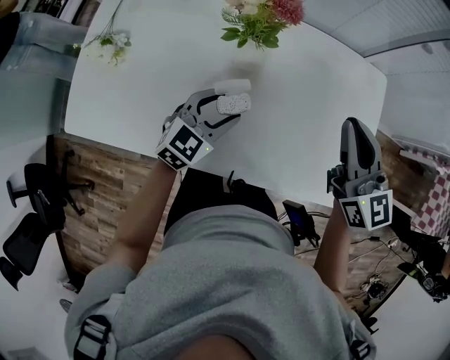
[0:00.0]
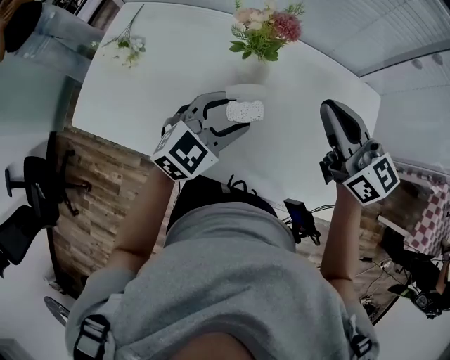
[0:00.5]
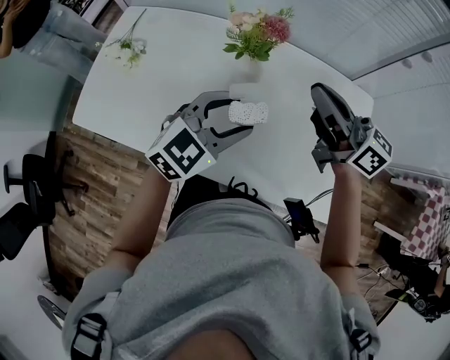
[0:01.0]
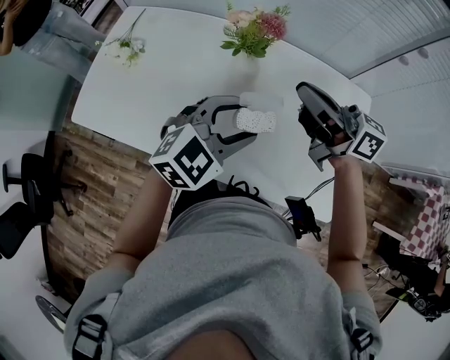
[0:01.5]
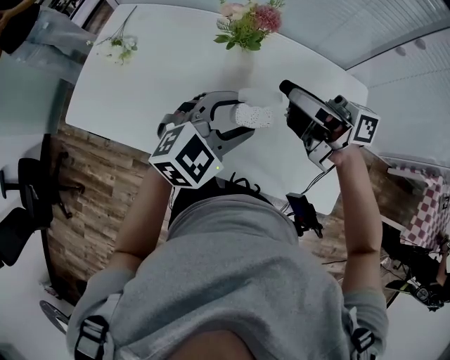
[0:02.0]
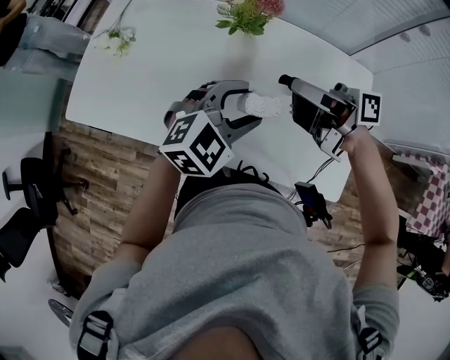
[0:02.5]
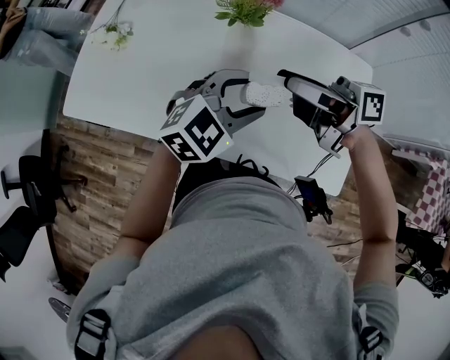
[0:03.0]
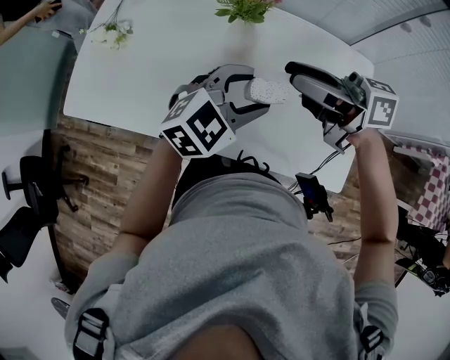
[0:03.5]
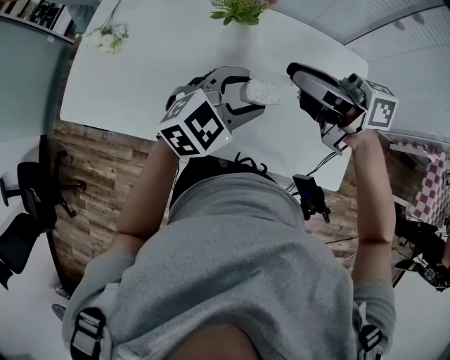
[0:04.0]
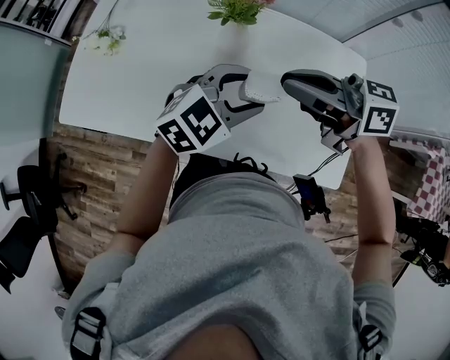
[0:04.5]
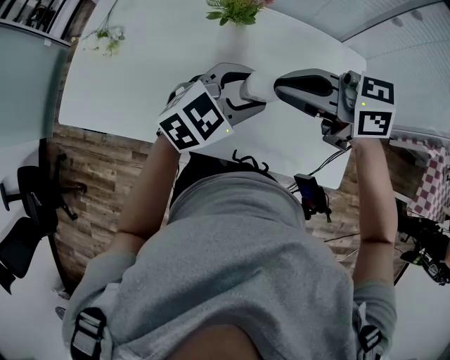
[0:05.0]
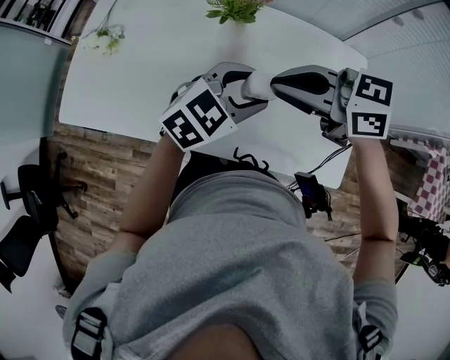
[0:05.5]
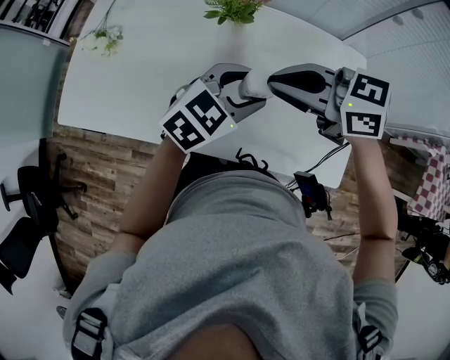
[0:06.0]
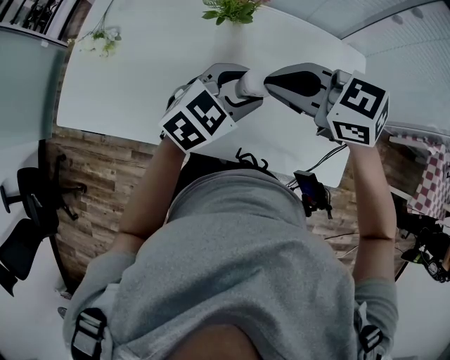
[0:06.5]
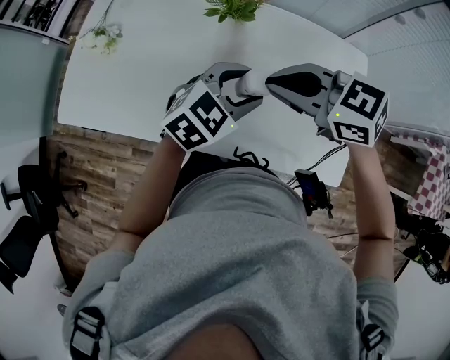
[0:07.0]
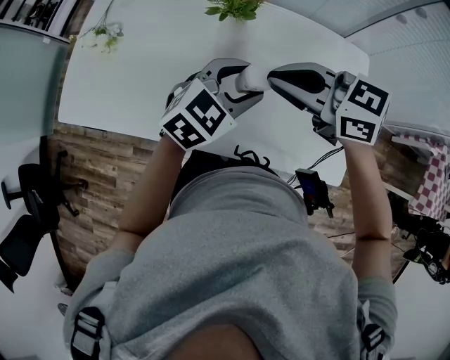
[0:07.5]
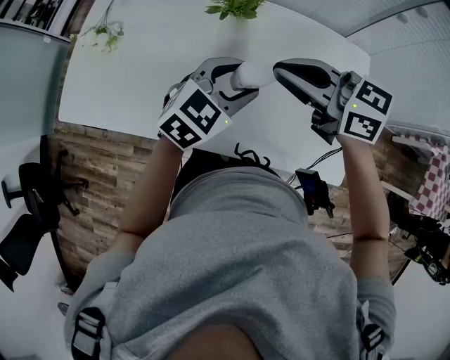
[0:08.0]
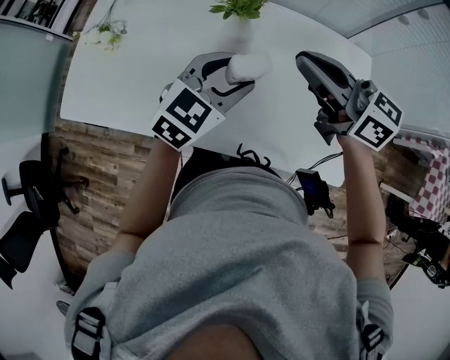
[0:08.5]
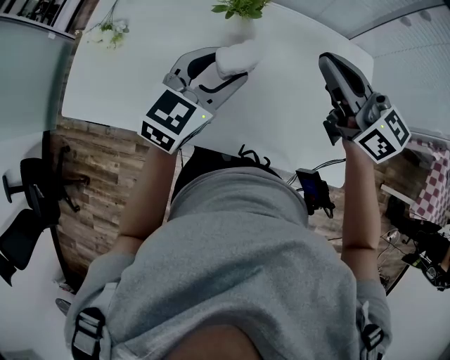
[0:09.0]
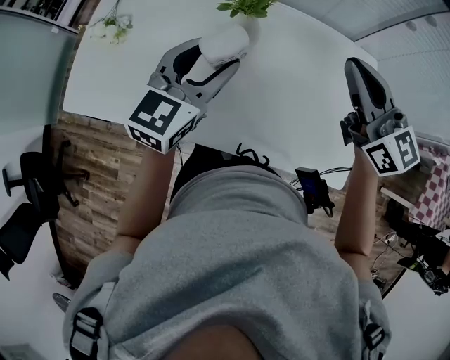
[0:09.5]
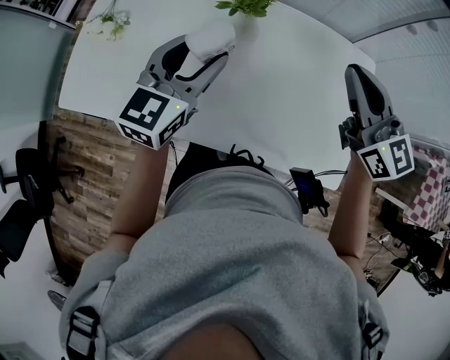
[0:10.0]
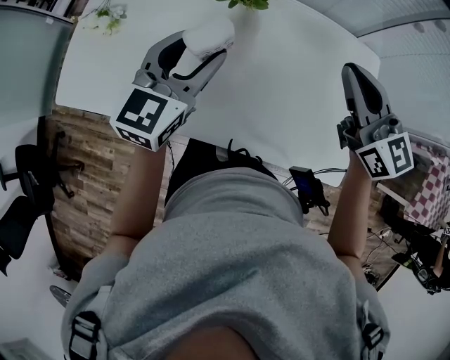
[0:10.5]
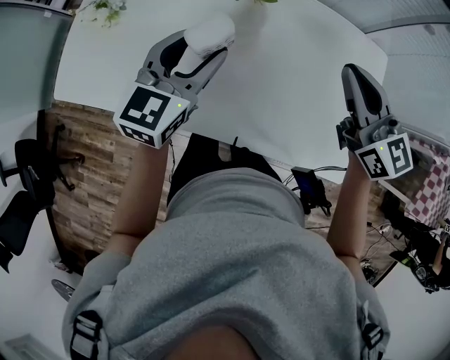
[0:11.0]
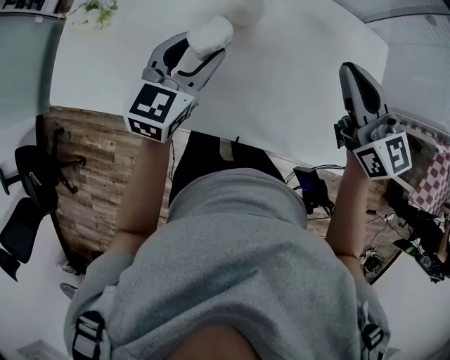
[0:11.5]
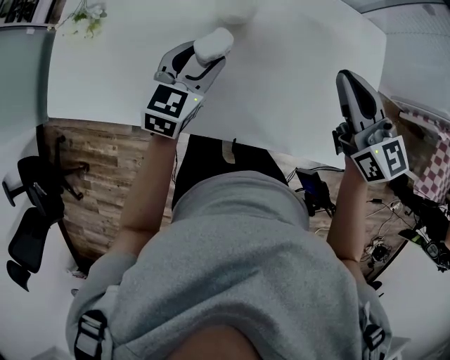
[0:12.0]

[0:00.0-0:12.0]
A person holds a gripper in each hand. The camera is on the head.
0:00.0 to 0:02.0: The right gripper moves to the left, roughly 10 cm, swivels some 80 degrees, and opens up. Meanwhile the left gripper travels upward and to the right by some 15 cm.
0:02.0 to 0:04.0: The grippers stay close to where they were, moving slightly.
0:04.0 to 0:06.0: The right gripper turns by roughly 40 degrees.
0:06.0 to 0:08.0: The grippers make only small movements.
0:08.0 to 0:10.0: The left gripper moves to the left and upward, about 10 cm, and rotates approximately 30 degrees; the right gripper goes some 10 cm to the right, and rotates about 40 degrees.
0:10.0 to 0:12.0: The right gripper heads downward, covering roughly 10 cm, while the left gripper goes roughly 15 cm downward.

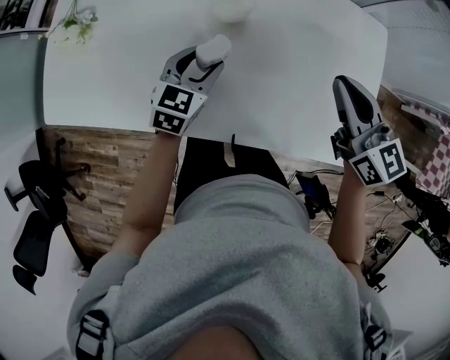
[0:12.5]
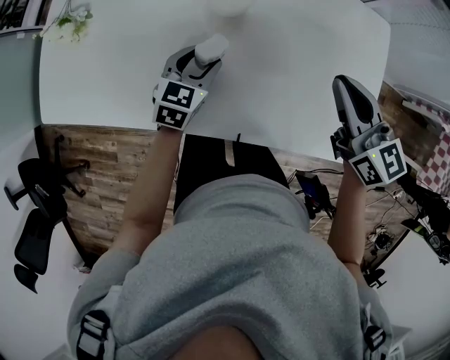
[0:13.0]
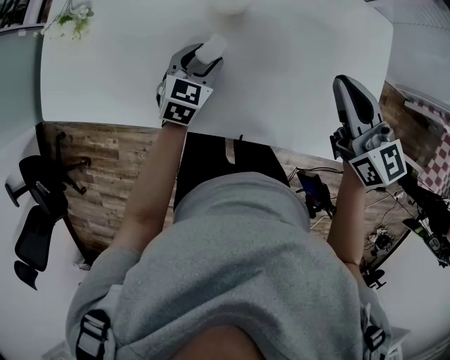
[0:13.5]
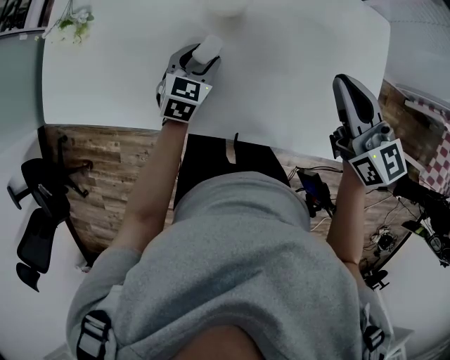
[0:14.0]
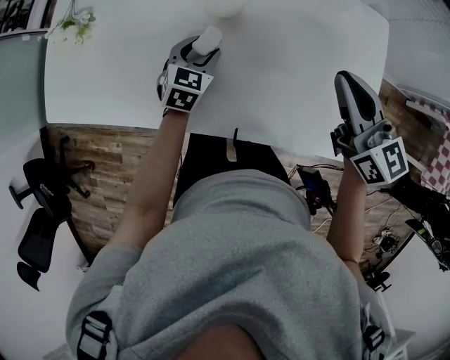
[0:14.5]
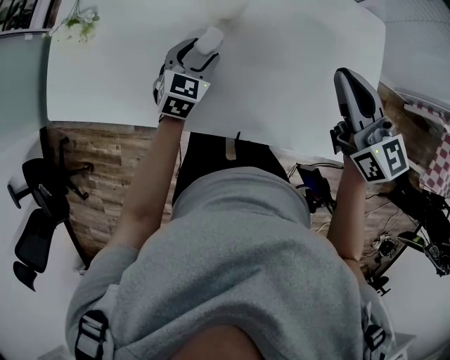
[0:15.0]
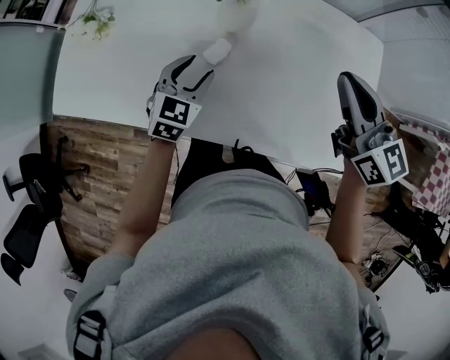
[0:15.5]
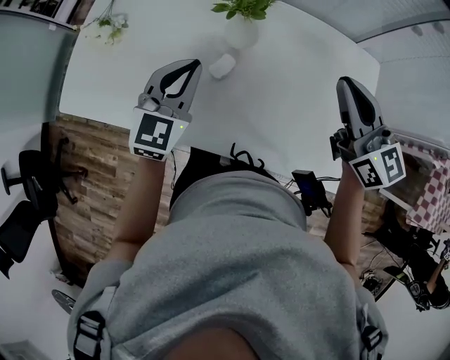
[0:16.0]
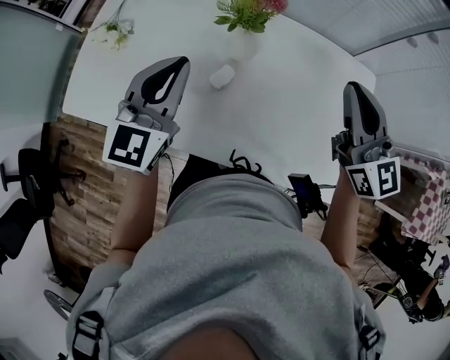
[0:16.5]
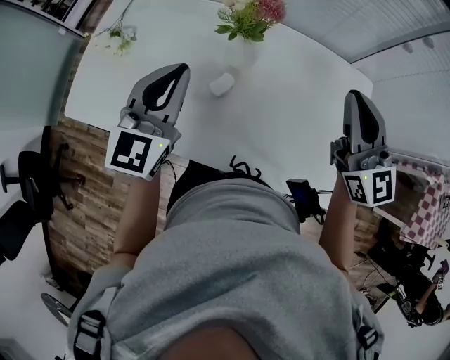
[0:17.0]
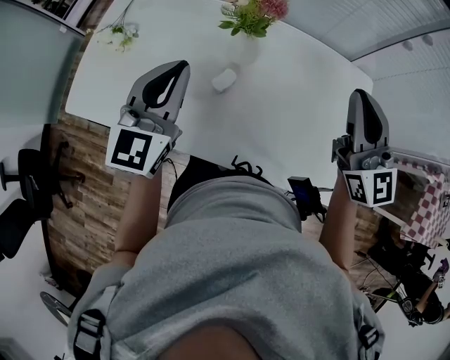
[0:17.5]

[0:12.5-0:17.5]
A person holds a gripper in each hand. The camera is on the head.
0:15.0 to 0:17.5: The left gripper moves upward, roughly 30 cm, tilts its fingers some 30 degrees upward, and closes up; the right gripper goes some 15 cm upward, and swivels about 30 degrees.

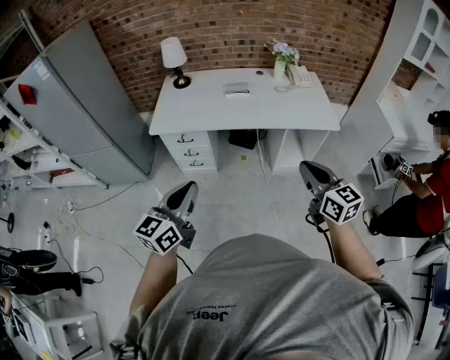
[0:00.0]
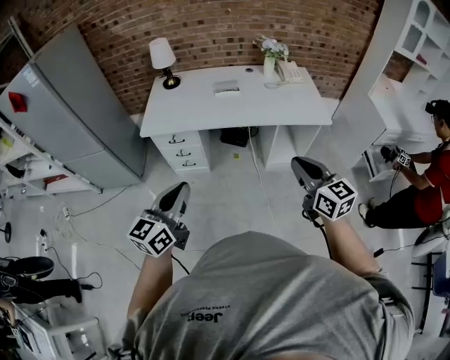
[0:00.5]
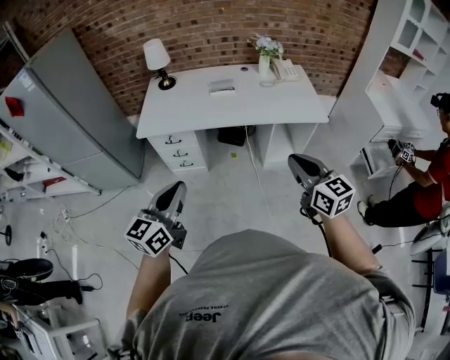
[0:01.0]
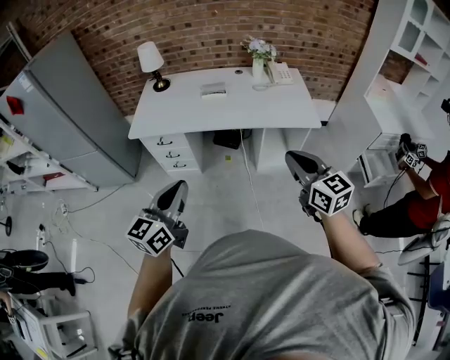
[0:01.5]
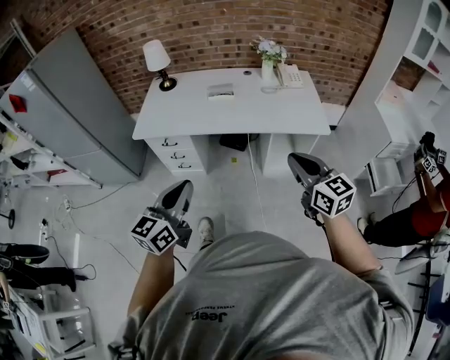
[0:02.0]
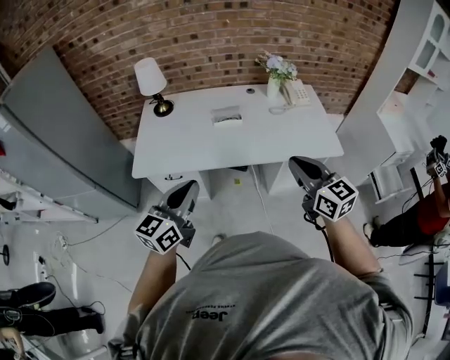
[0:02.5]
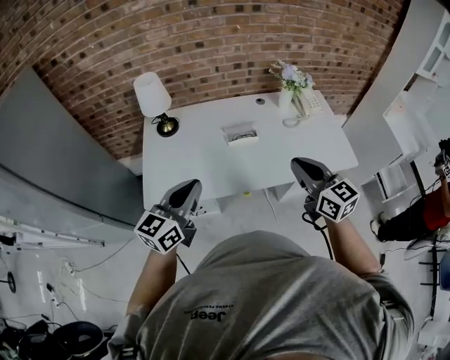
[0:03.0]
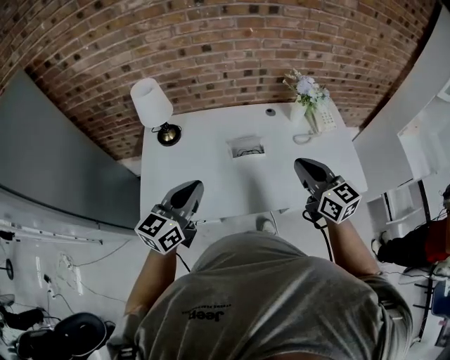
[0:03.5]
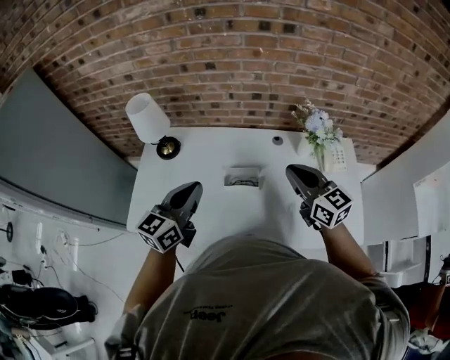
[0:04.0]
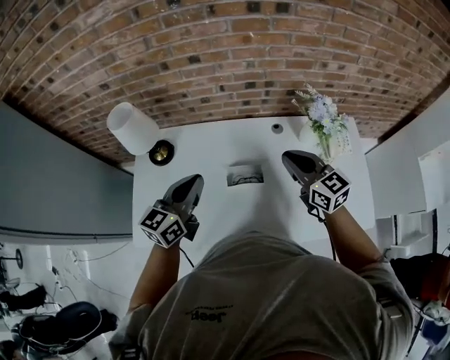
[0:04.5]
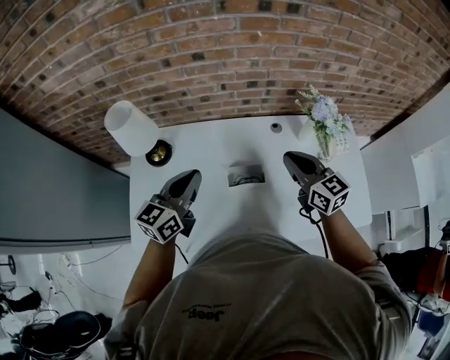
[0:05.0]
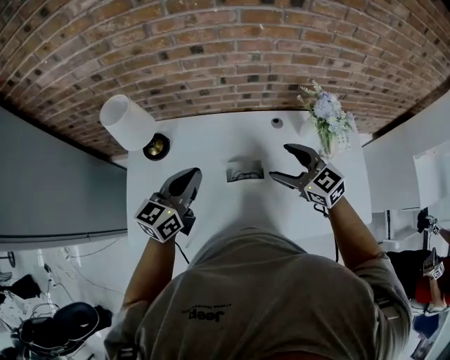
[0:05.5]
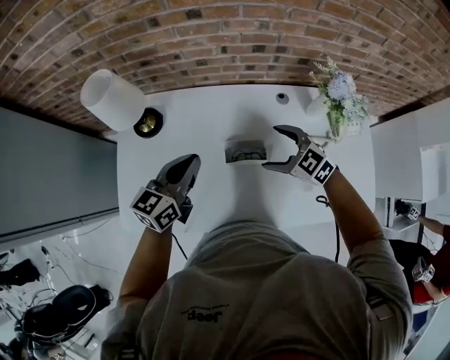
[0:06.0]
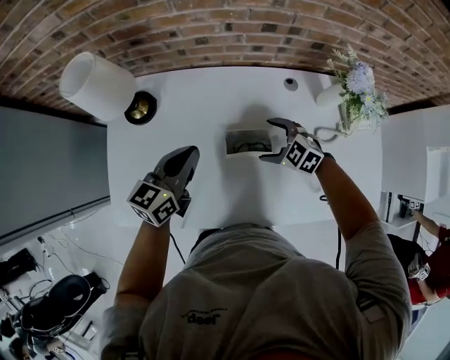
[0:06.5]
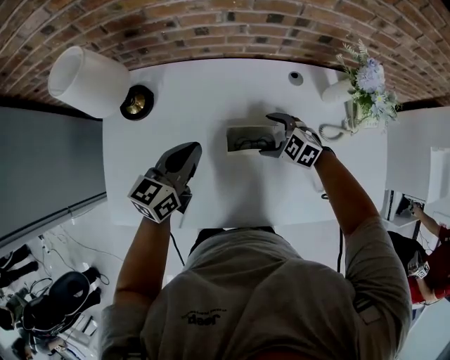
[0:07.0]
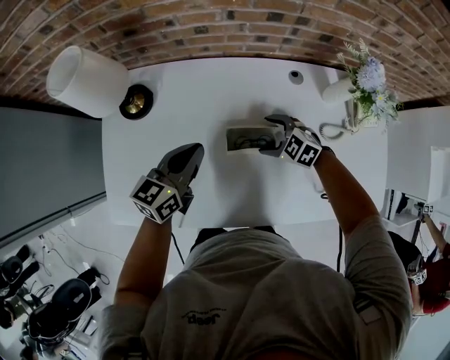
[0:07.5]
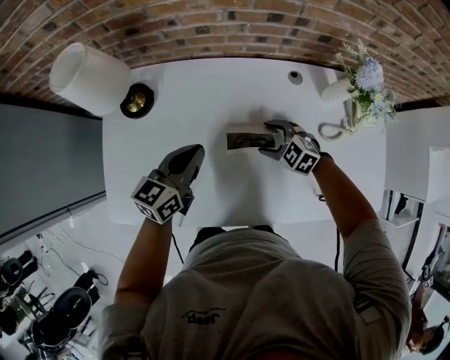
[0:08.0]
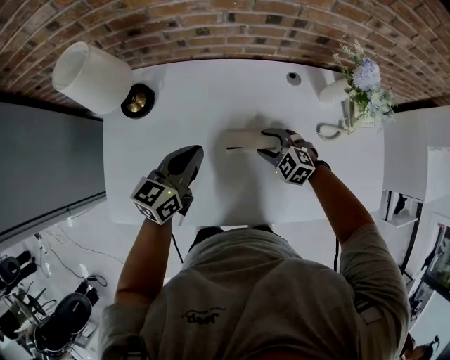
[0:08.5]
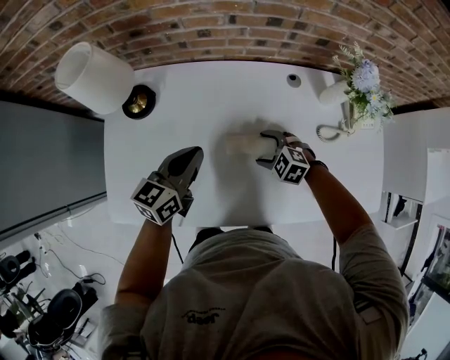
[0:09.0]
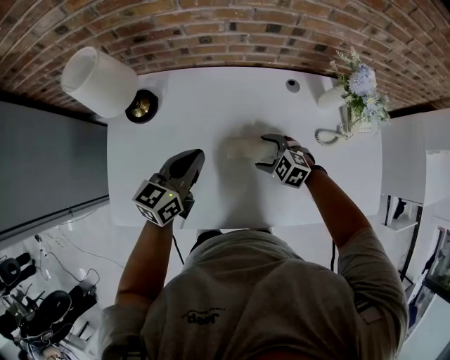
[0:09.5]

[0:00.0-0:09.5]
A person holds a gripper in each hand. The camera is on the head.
0:00.0 to 0:02.0: The right gripper goes roughly 10 cm to the right and forward, while the left gripper travels to the right by about 10 cm.
0:02.0 to 0:04.0: The pair of grippers is taken forward, some 60 cm.
0:04.0 to 0:05.5: The right gripper heads downward, forward and to the left, covering approximately 10 cm, rotates roughly 20 degrees, and opens its fingers; the left gripper shifts some 10 cm forward.
0:05.5 to 0:07.5: The left gripper travels downward by approximately 15 cm; the right gripper shifts approximately 25 cm downward, and turns by some 40 degrees.
0:07.5 to 0:09.5: The grippers stay close to where they were, moving slightly.
